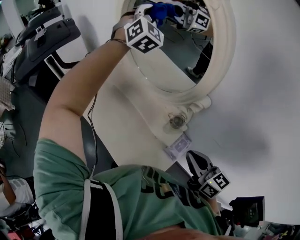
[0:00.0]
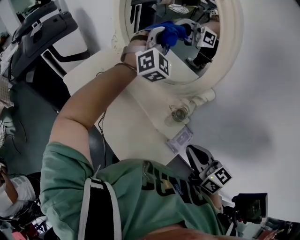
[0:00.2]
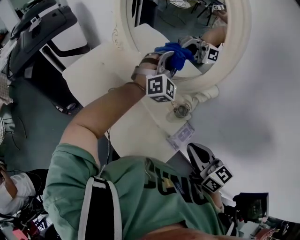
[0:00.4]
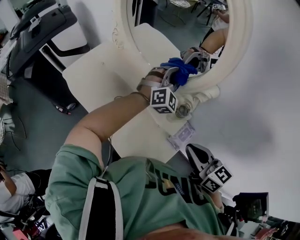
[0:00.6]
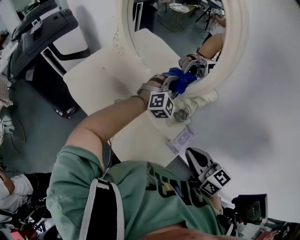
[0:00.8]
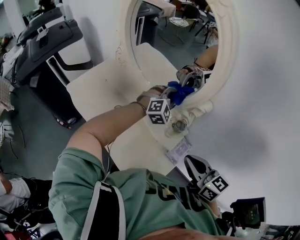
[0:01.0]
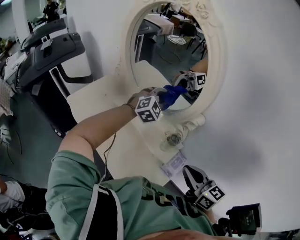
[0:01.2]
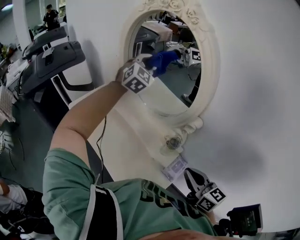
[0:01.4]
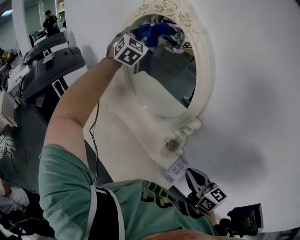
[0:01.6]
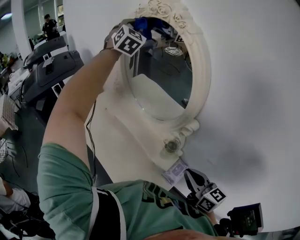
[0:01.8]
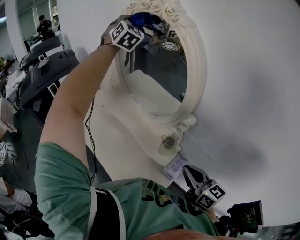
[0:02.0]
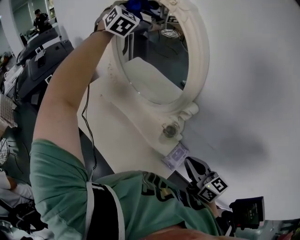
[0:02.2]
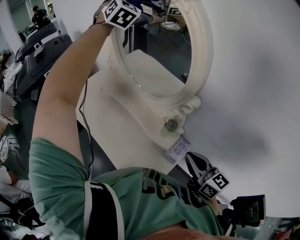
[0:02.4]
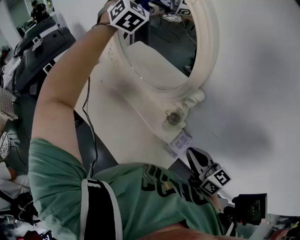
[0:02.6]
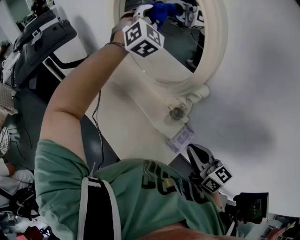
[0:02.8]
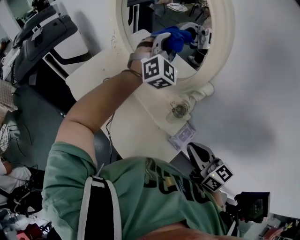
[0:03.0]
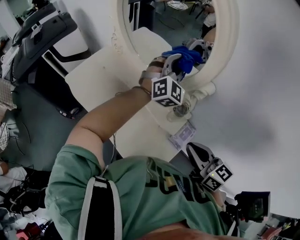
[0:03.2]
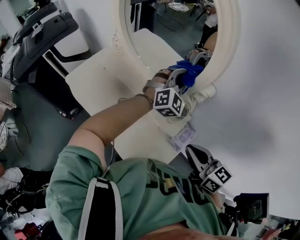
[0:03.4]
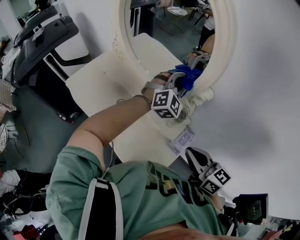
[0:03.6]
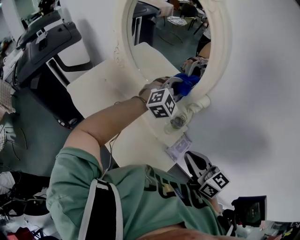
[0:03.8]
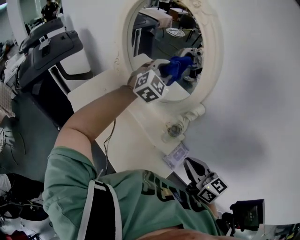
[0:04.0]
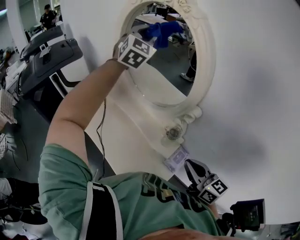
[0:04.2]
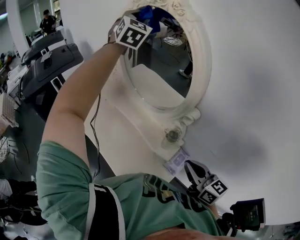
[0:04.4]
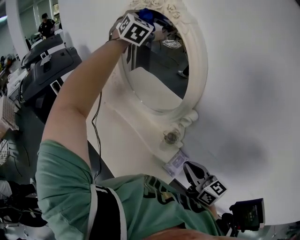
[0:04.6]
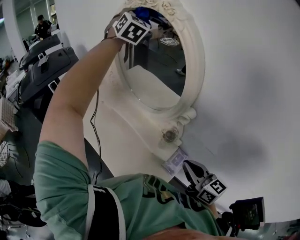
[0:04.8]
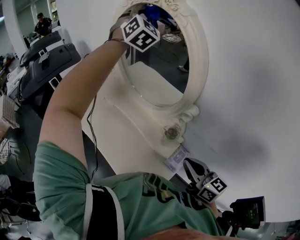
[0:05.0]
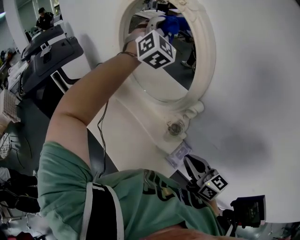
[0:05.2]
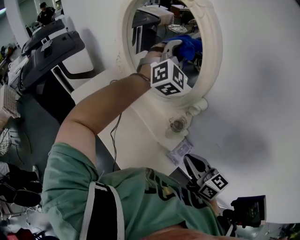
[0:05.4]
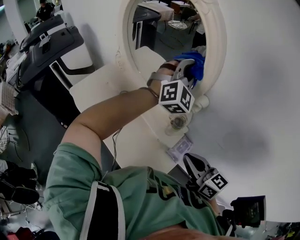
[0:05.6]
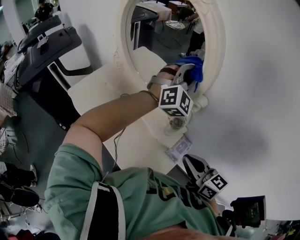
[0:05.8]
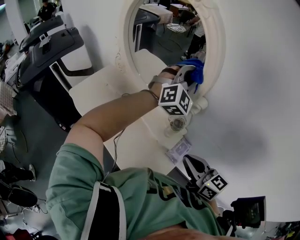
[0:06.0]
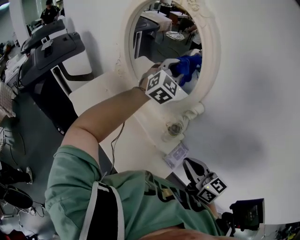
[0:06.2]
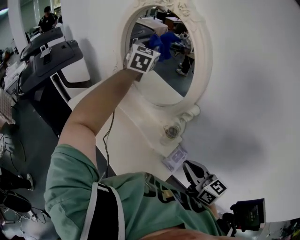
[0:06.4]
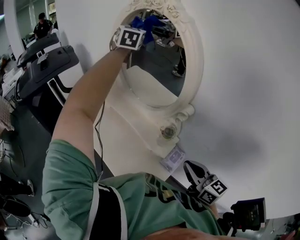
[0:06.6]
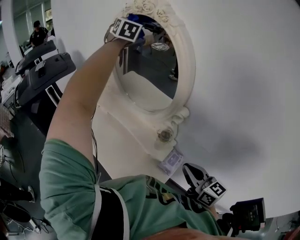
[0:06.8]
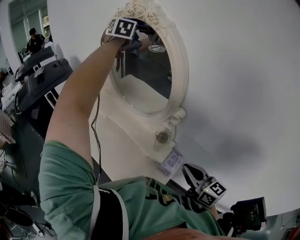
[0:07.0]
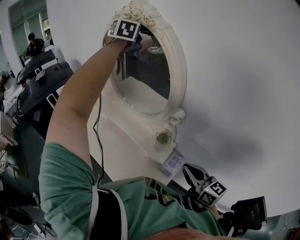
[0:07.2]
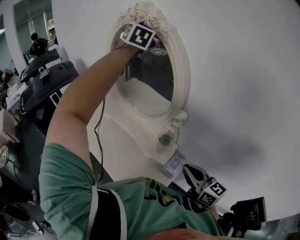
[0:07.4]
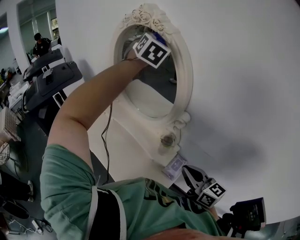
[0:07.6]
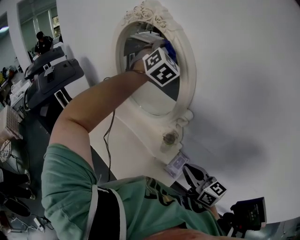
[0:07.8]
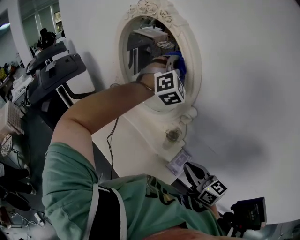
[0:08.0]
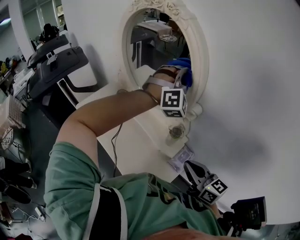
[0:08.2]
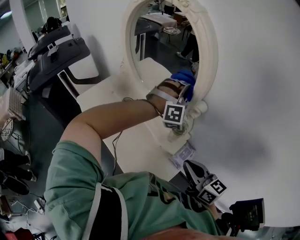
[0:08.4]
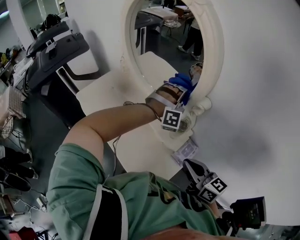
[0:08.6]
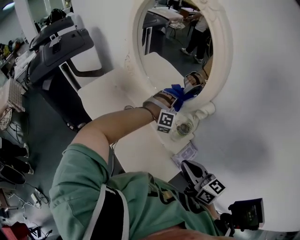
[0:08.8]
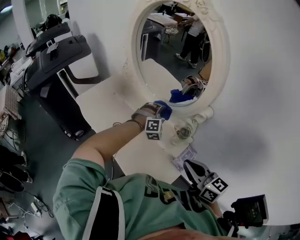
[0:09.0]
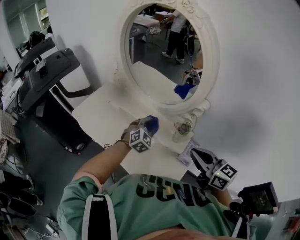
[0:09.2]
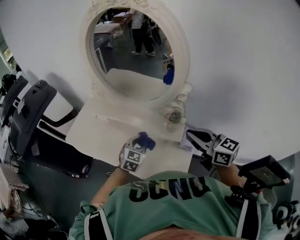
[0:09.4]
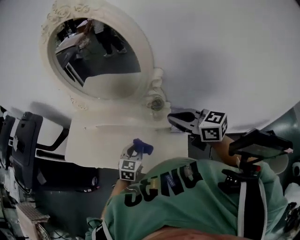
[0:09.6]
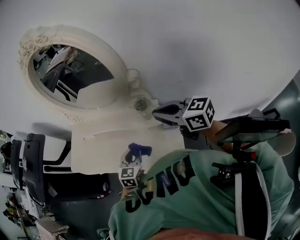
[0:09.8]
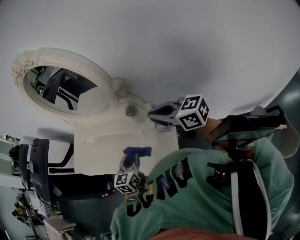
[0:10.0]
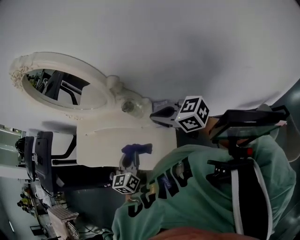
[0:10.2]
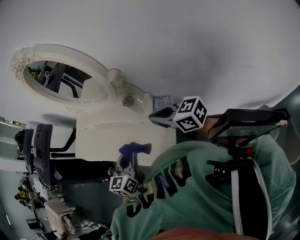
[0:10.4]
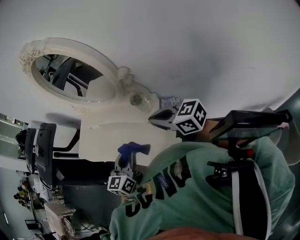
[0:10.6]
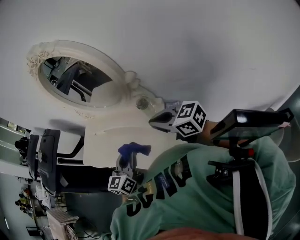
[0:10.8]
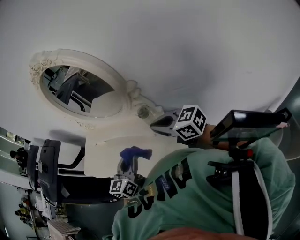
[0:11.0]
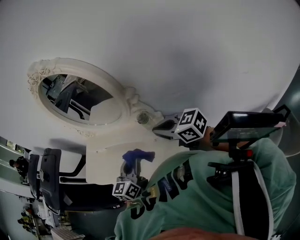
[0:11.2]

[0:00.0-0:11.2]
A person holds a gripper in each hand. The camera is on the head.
0:00.0 to 0:01.6: The left gripper reaches approximately 30 cm downward, then returns.
0:01.6 to 0:03.2: The left gripper moves downward, backward and to the right, roughly 35 cm.
0:03.2 to 0:04.8: The left gripper travels upward, forward and to the left by approximately 35 cm, and changes its angle by roughly 20 degrees.
0:04.8 to 0:06.4: The left gripper heads downward, covering some 15 cm, and changes its angle by approximately 30 degrees.
0:06.4 to 0:08.0: The left gripper heads backward and to the right, covering roughly 20 cm, and rotates around the line of its fingers by roughly 50 degrees, clockwise from behind.
0:08.0 to 0:09.6: The left gripper shifts some 50 cm downward, backward and to the left, and rotates roughly 60 degrees. Meanwhile the right gripper moves to the left and forward, approximately 10 cm.
0:09.6 to 0:11.2: The left gripper travels upward and backward by some 15 cm, and turns by roughly 30 degrees. Meanwhile the right gripper moves backward, about 5 cm, and goes to the right and returns, some 10 cm each way.

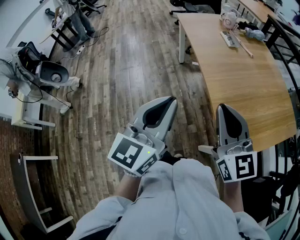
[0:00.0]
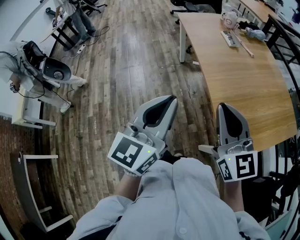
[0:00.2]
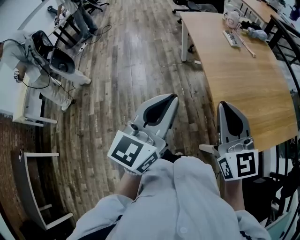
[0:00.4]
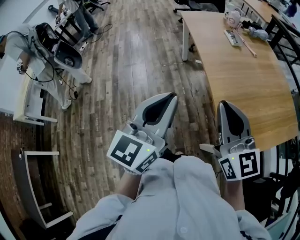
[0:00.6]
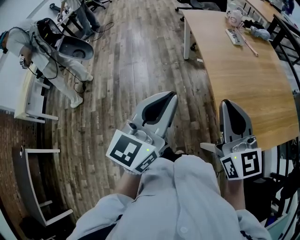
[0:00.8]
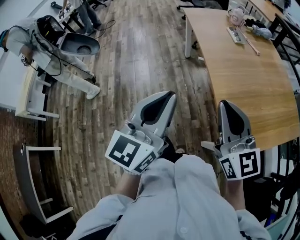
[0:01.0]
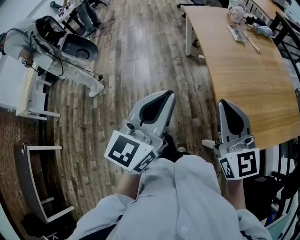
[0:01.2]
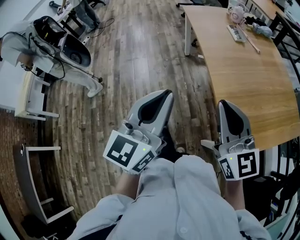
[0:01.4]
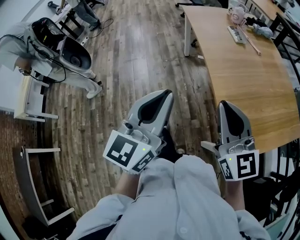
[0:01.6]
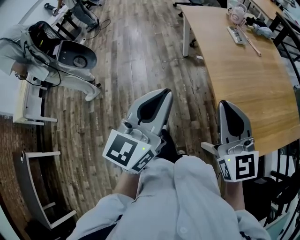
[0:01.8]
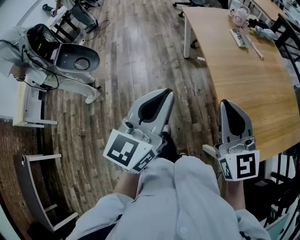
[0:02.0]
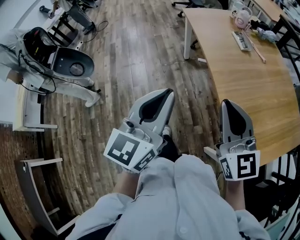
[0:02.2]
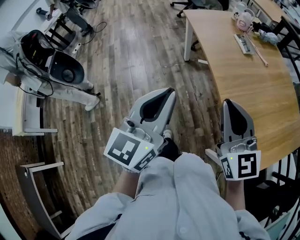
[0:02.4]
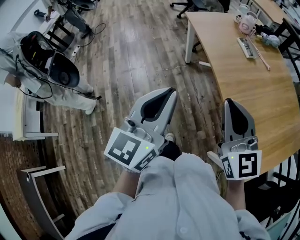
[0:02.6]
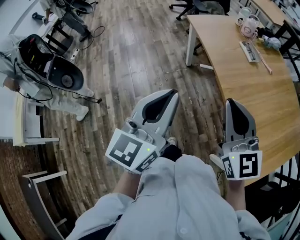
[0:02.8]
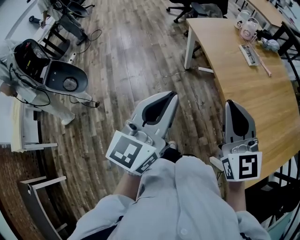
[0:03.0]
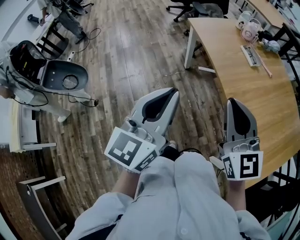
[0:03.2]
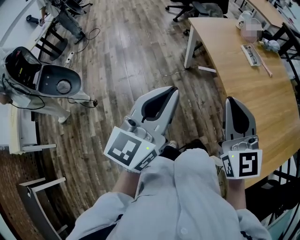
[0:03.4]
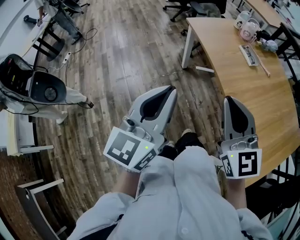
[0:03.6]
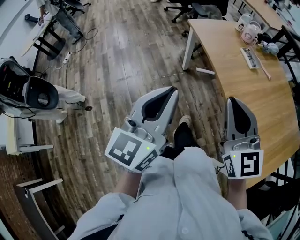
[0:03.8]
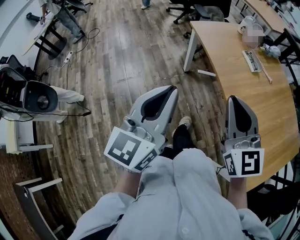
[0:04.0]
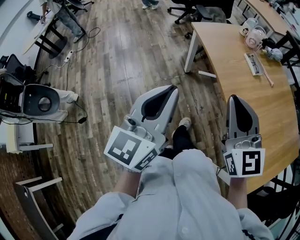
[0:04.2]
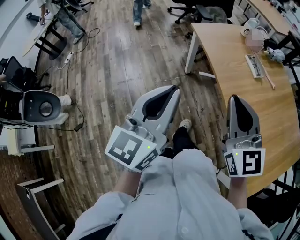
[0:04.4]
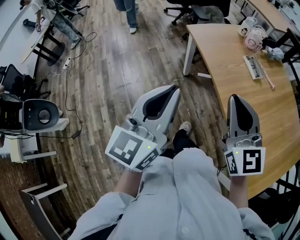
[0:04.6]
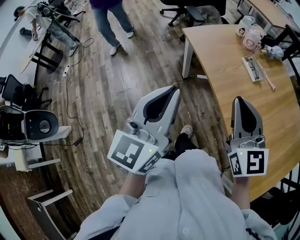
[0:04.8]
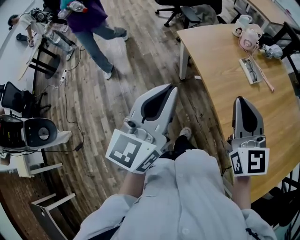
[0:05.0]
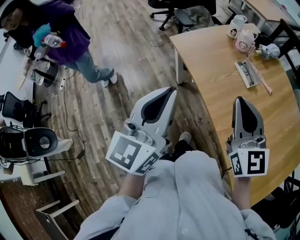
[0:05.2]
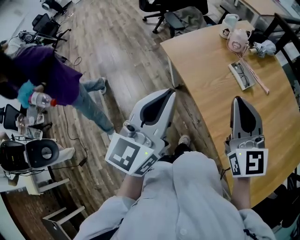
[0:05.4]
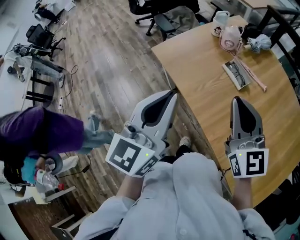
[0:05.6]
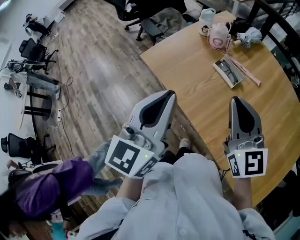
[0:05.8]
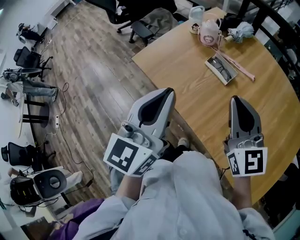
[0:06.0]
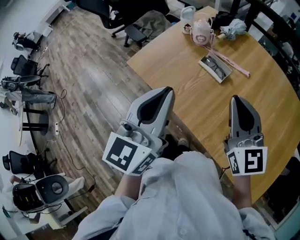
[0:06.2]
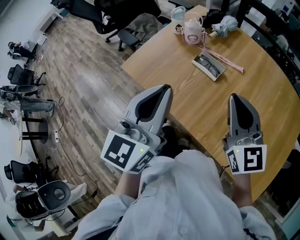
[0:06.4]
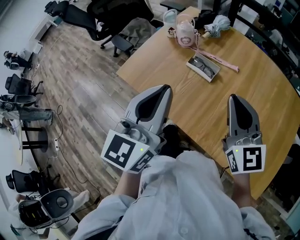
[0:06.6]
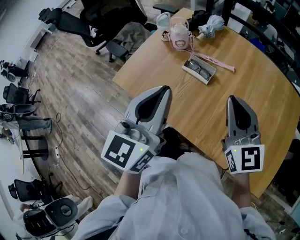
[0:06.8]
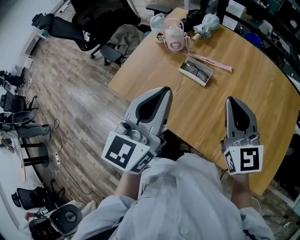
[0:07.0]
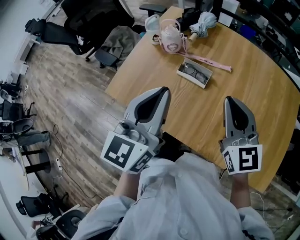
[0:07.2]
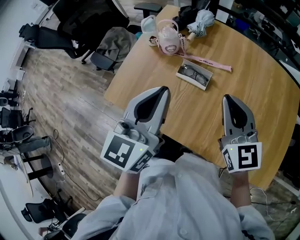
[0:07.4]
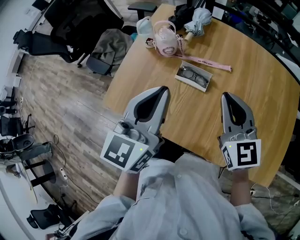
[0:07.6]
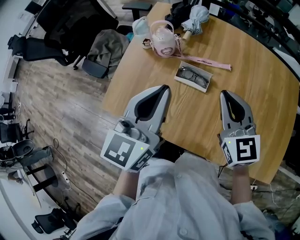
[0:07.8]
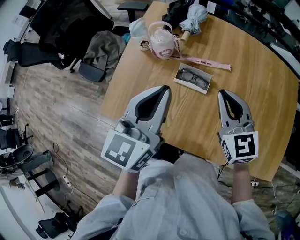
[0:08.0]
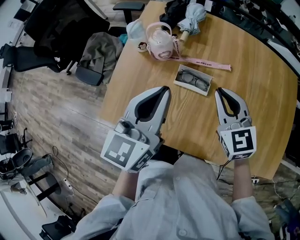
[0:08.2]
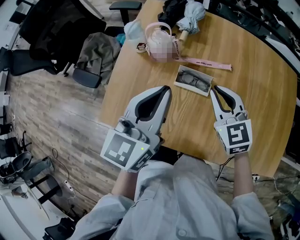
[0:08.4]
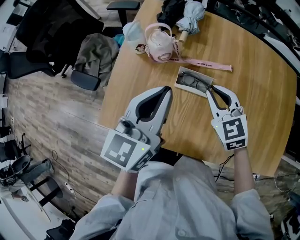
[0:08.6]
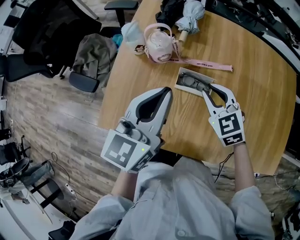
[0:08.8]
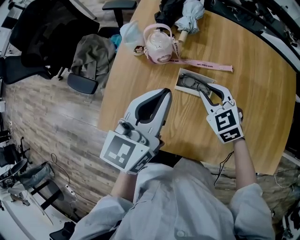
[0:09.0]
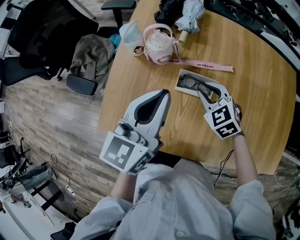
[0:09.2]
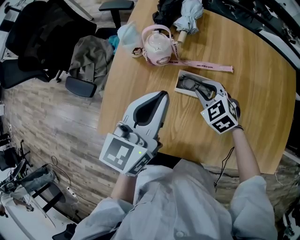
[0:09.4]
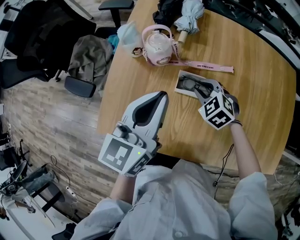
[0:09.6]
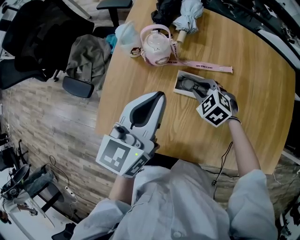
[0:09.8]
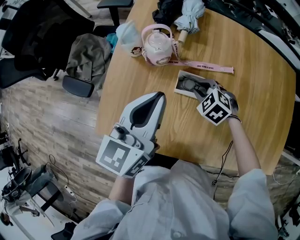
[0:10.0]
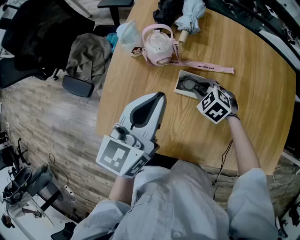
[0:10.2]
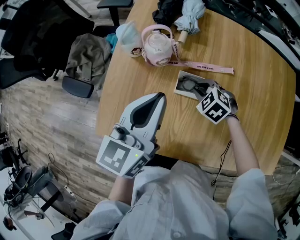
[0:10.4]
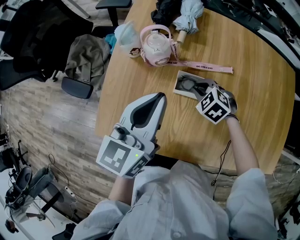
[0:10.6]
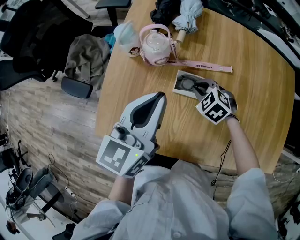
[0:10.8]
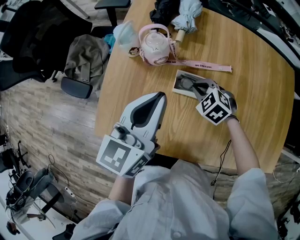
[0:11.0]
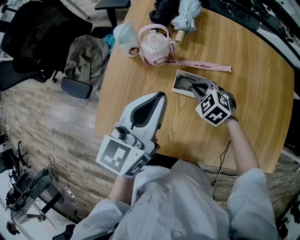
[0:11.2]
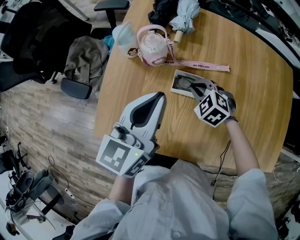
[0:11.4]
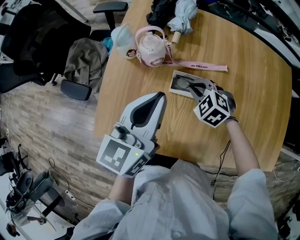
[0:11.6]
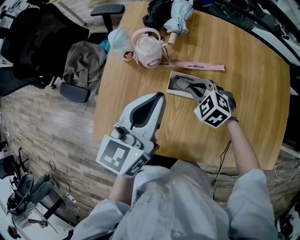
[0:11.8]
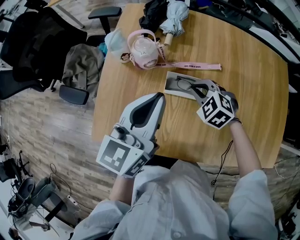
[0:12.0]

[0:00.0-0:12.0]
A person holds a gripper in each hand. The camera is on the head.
0:00.0 to 0:01.6: There are only small adjustments of the grippers.
0:01.6 to 0:03.0: Both grippers travel together forward and to the left, some 25 cm.
0:03.0 to 0:04.4: Both grippers travel together forward, approximately 10 cm.
0:04.4 to 0:06.0: Both grippers move forward and to the right, about 30 cm. The left gripper rotates roughly 20 degrees; the right gripper changes its angle by roughly 20 degrees.
0:06.0 to 0:07.6: The right gripper goes some 10 cm forward, and turns by roughly 20 degrees, while the left gripper is displaced forward by some 15 cm, and turns by roughly 20 degrees.
0:07.6 to 0:09.0: The right gripper moves downward, forward and to the left, some 20 cm, and rotates about 30 degrees. The left gripper goes approximately 10 cm forward and downward.
0:09.0 to 0:10.4: The right gripper heads downward, covering approximately 10 cm, and swivels approximately 20 degrees.
0:10.4 to 0:12.0: The right gripper goes approximately 5 cm upward.
